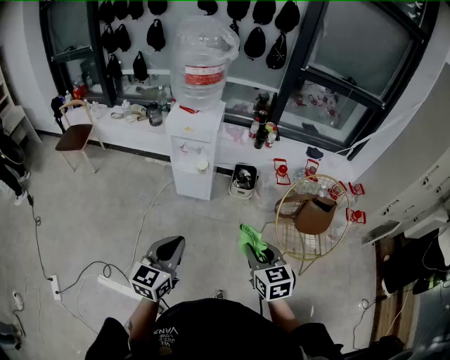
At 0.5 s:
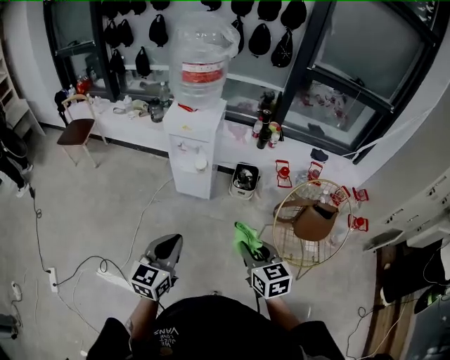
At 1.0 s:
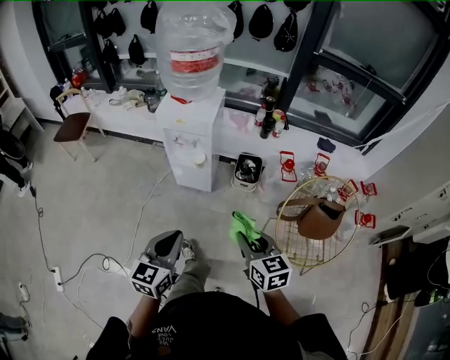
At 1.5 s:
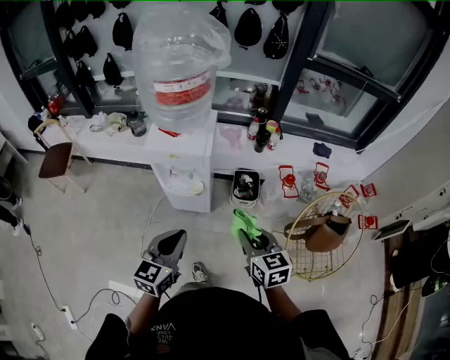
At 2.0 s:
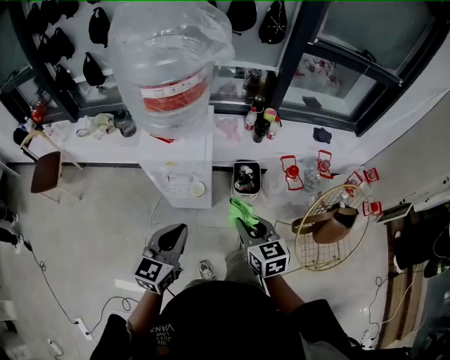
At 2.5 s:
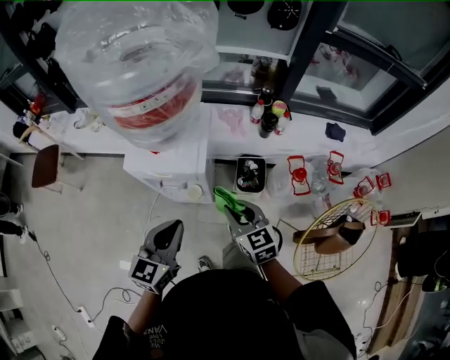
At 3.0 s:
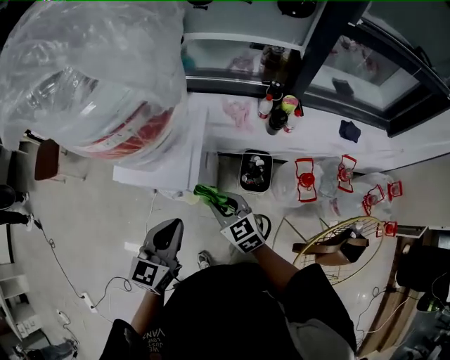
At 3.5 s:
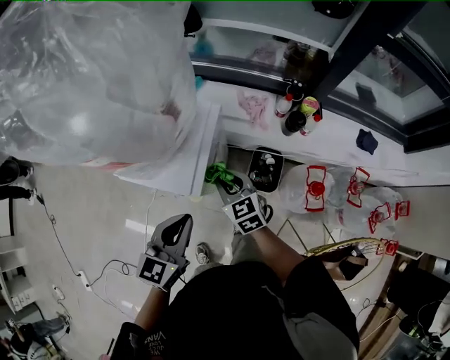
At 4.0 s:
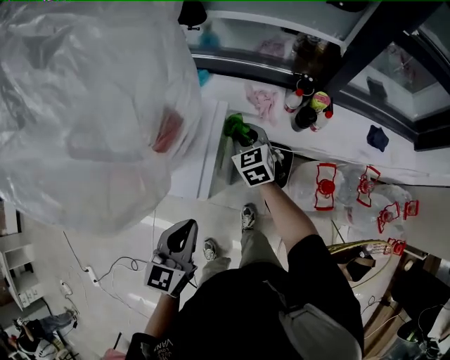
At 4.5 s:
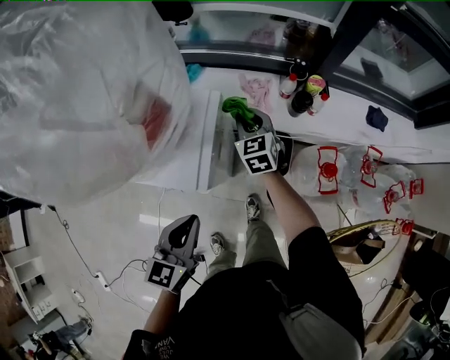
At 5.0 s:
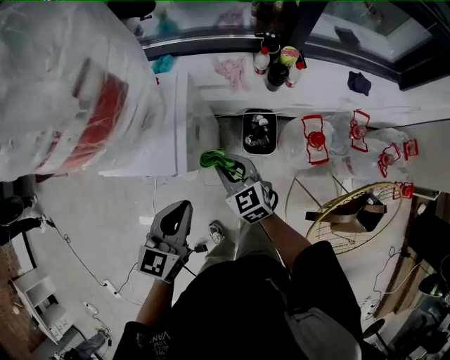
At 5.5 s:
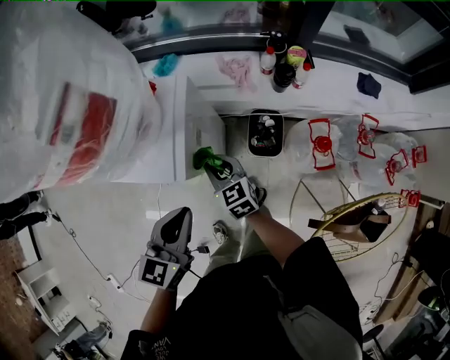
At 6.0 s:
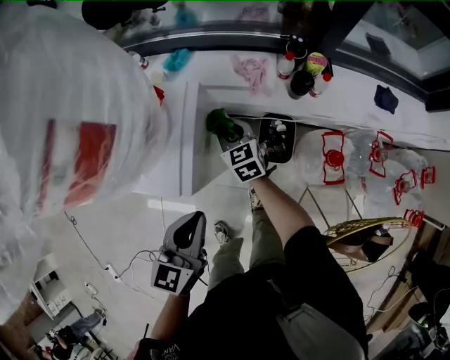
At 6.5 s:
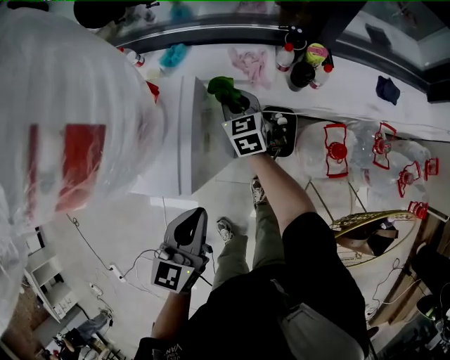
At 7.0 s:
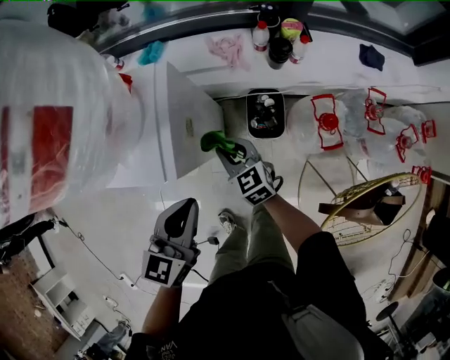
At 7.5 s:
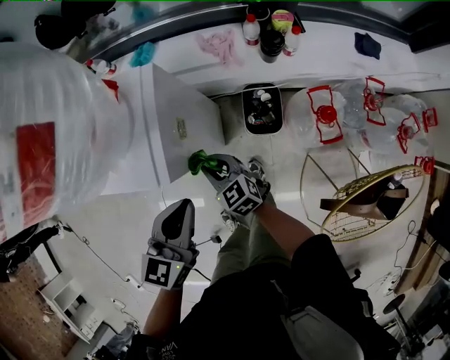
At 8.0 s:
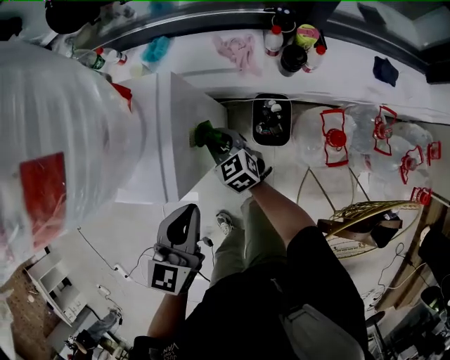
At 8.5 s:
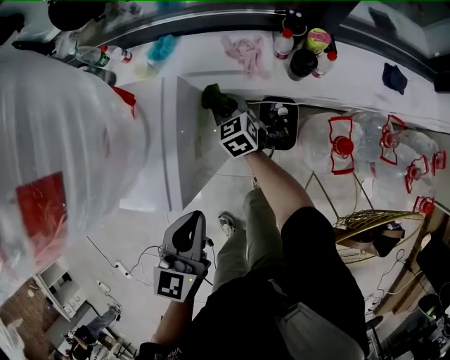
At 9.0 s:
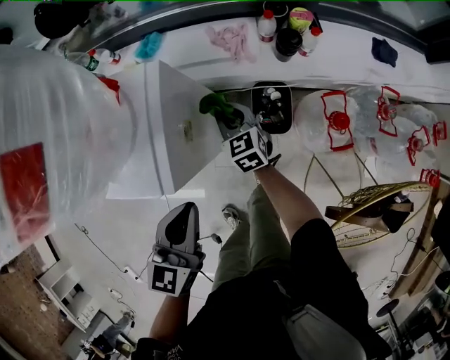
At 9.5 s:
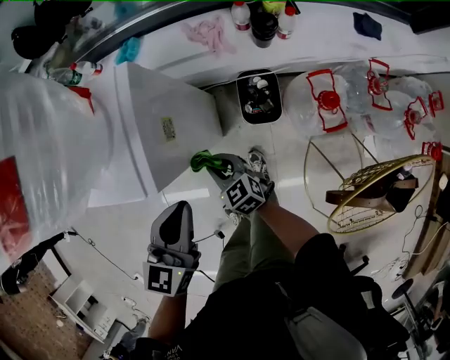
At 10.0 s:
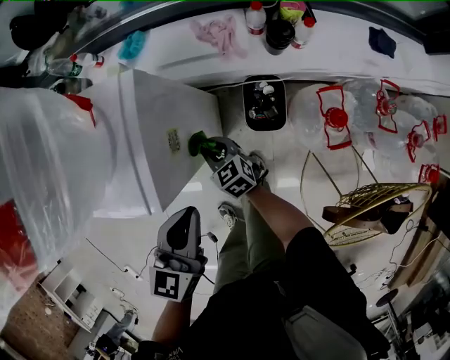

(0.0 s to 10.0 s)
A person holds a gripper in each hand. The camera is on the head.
0.0 s - 2.0 s: Both grippers move forward, some 35 cm.
2.0 s - 4.0 s: The left gripper shifts roughly 20 cm forward and to the right; the right gripper is displaced forward by some 40 cm, and turns by approximately 20 degrees.
4.0 s - 6.0 s: The right gripper moves downward, some 5 cm, and goes backward and returns, about 20 cm each way. The left gripper is displaced to the right by roughly 5 cm.
6.0 s - 8.0 s: The right gripper moves forward and backward over approximately 25 cm, changing direction 2 times.
8.0 s - 10.0 s: The right gripper swings forward and backward, approximately 25 cm each way, with 2 reversals.

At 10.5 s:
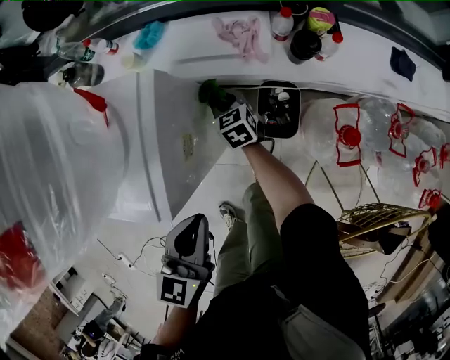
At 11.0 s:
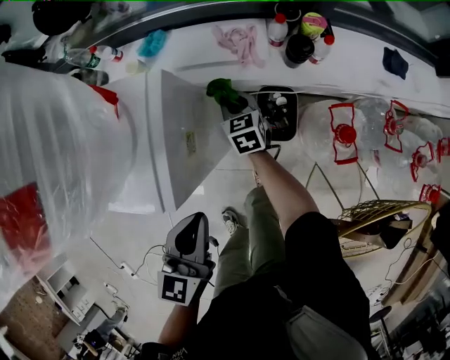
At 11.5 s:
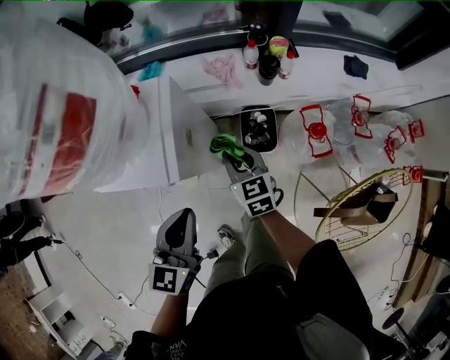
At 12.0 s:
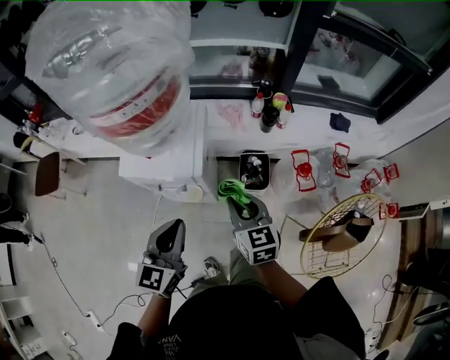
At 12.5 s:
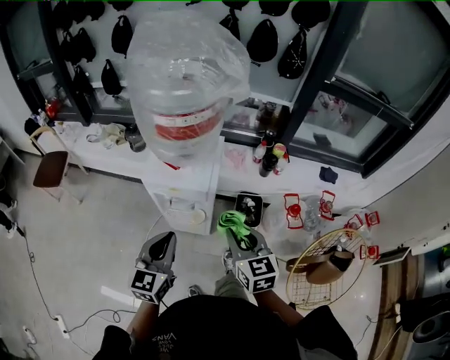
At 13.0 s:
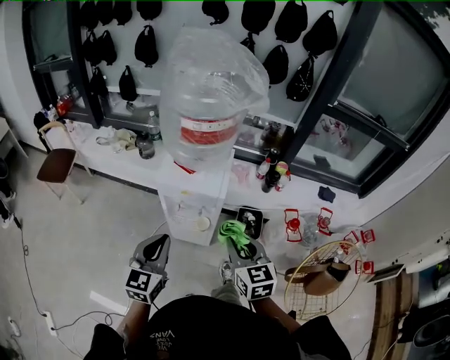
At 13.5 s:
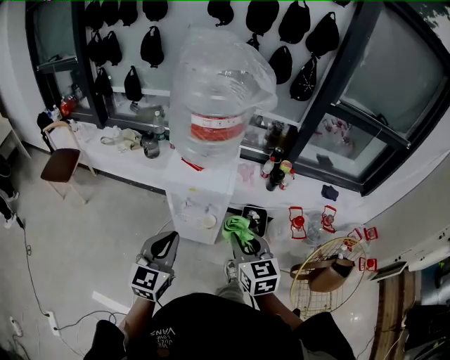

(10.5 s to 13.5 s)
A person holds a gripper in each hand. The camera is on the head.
10.5 s - 12.0 s: The left gripper goes roughly 20 cm backward, upward and to the left, while the right gripper goes roughly 40 cm upward and backward, and turns by some 20 degrees.
12.0 s - 13.5 s: The right gripper is displaced backward, to the left and upward by approximately 20 cm, while the left gripper moves to the left, backward and upward, some 20 cm.

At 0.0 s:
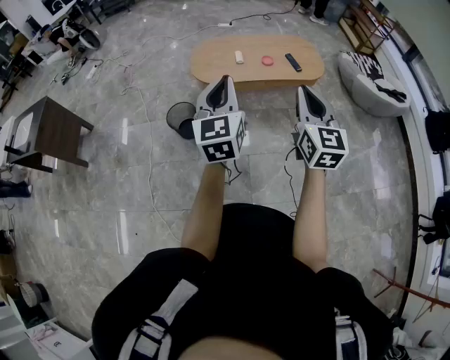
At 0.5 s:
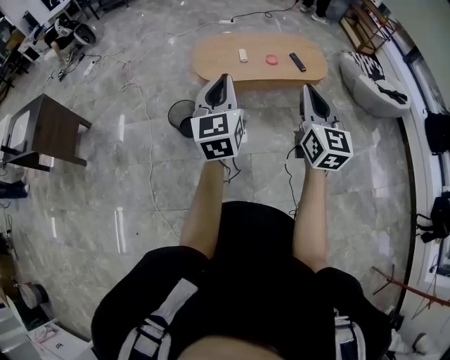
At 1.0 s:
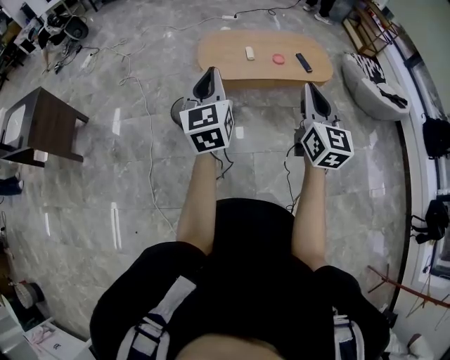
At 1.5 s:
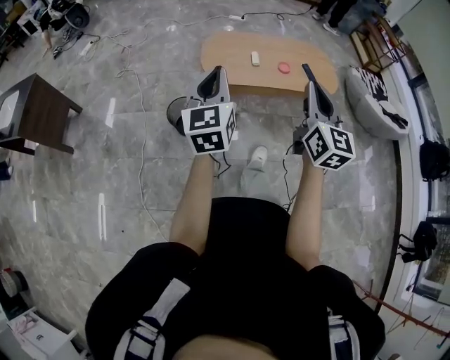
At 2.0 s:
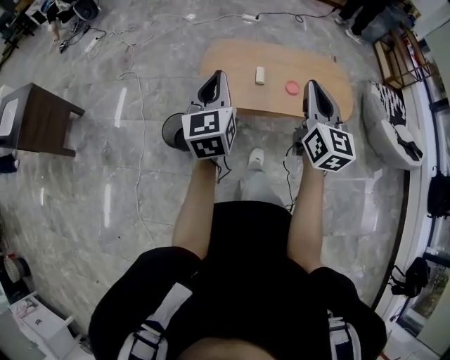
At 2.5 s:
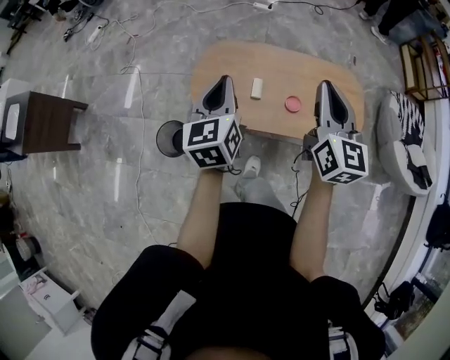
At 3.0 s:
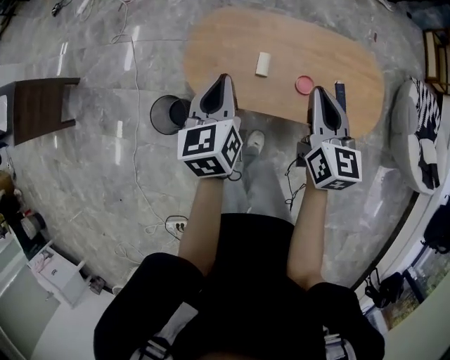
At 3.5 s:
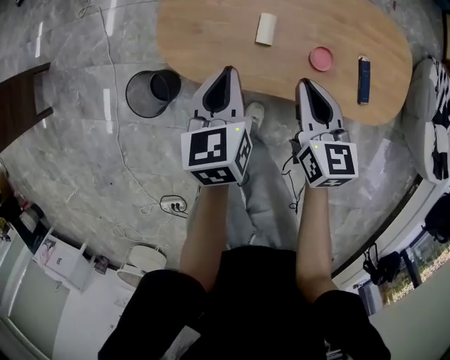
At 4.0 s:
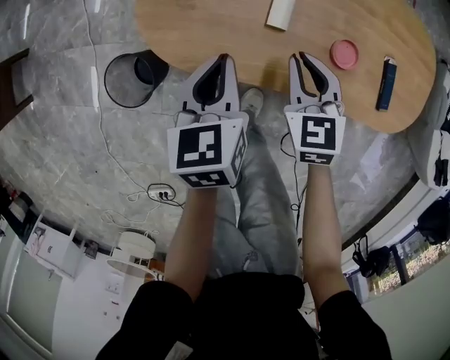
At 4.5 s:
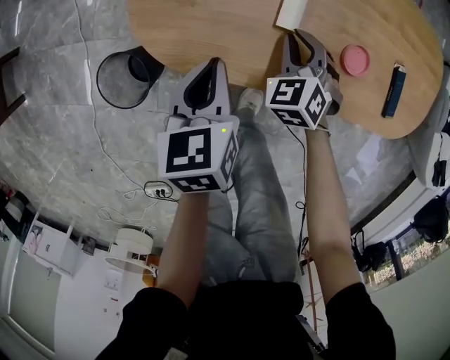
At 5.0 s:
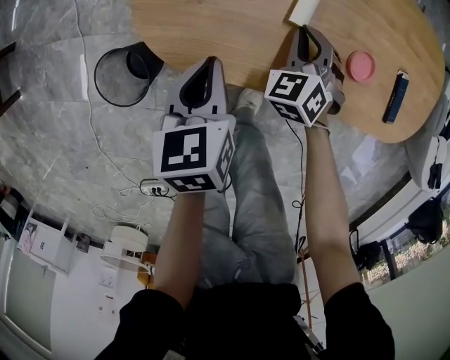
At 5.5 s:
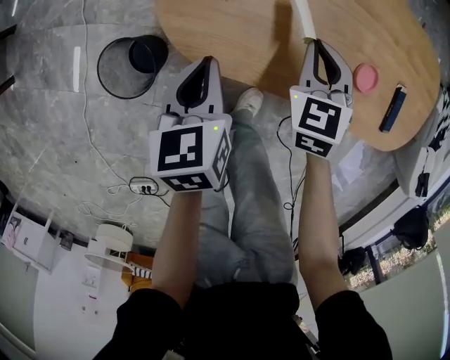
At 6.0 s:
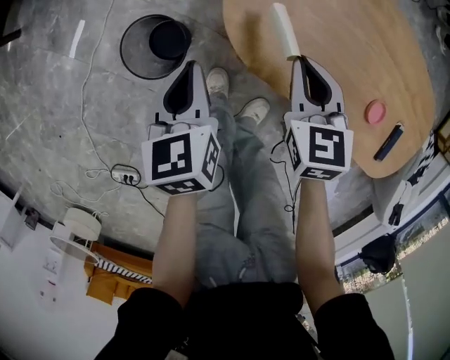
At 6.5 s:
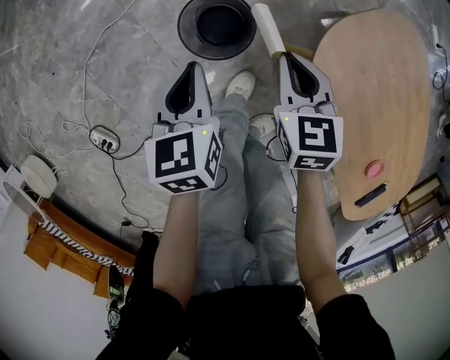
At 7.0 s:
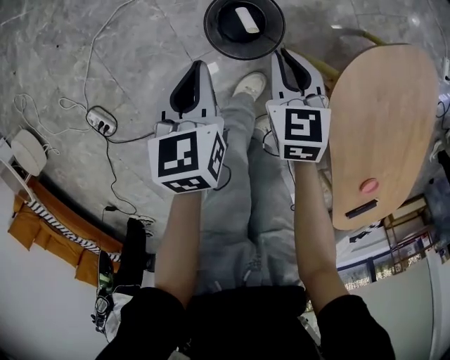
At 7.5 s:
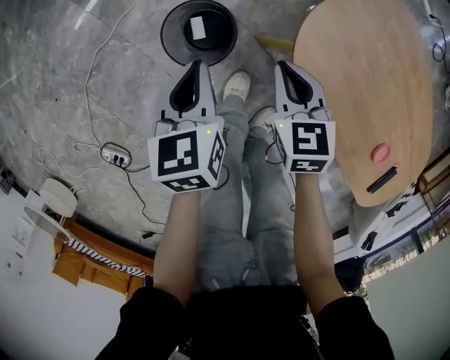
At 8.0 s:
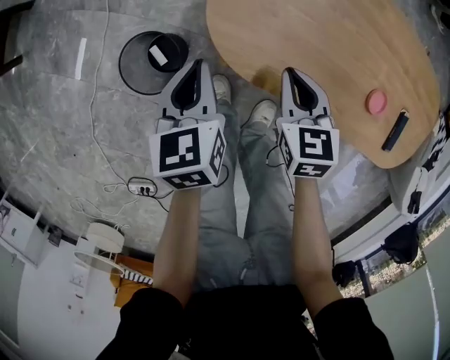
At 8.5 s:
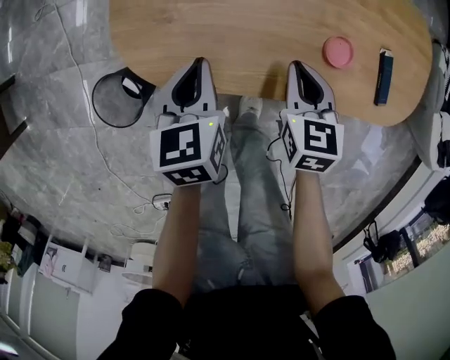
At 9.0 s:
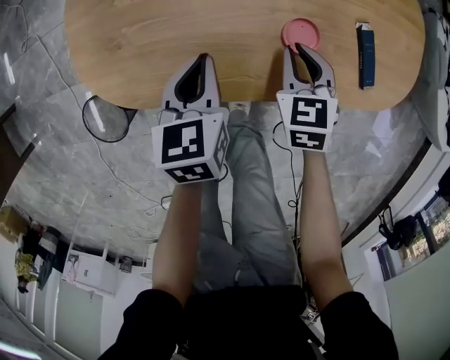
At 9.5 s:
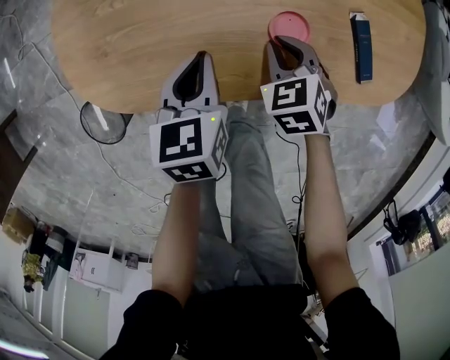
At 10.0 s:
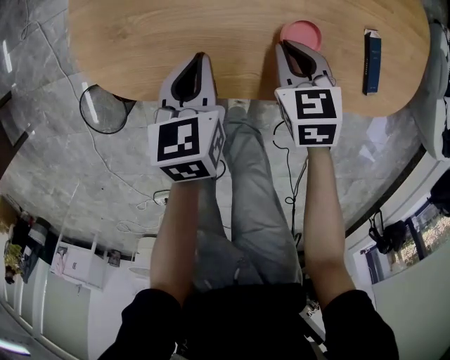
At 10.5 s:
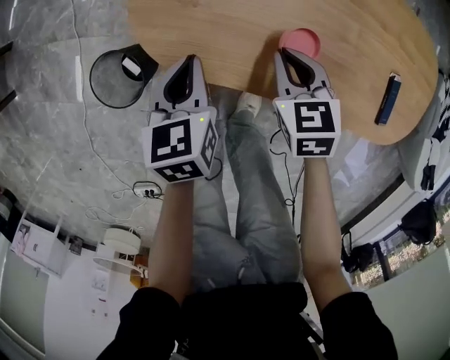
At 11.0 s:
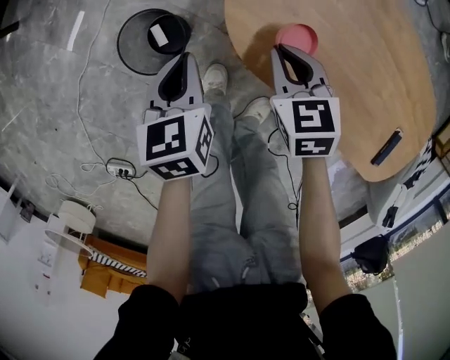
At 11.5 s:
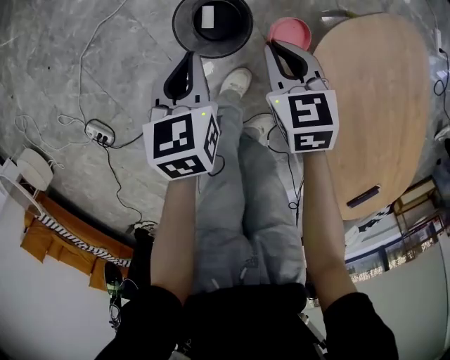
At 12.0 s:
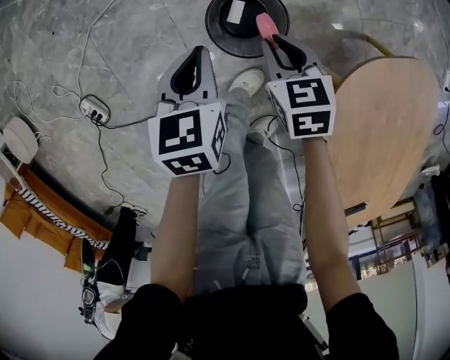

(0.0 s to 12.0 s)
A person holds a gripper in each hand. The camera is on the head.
0.0 s - 2.0 s: The two grippers go about 35 cm forward.
2.0 s - 4.0 s: Both grippers move downward and forward, approximately 50 cm. The right gripper angles its fingers downward, by some 40 degrees. Meanwhile the left gripper points its fingers about 30 degrees further downward.
4.0 s - 6.0 s: The right gripper moves roughly 10 cm downward and comes back. Meanwhile the left gripper changes place by some 25 cm, and turns by approximately 20 degrees.
8.0 s - 10.0 s: The right gripper changes place by approximately 30 cm. The left gripper changes place by some 30 cm, and changes its angle by approximately 20 degrees.
10.0 s - 12.0 s: The two grippers travel together, some 60 cm. The right gripper changes its angle by about 70 degrees. The left gripper rotates about 70 degrees.

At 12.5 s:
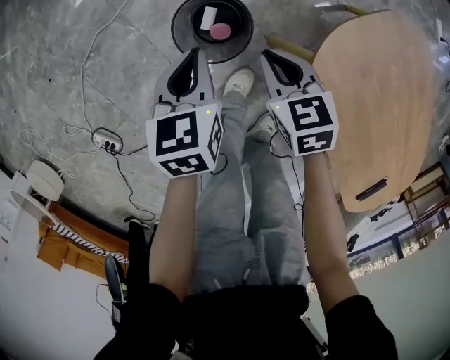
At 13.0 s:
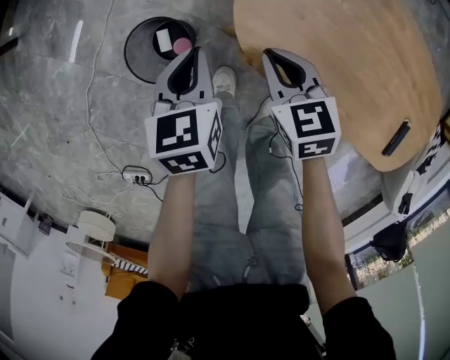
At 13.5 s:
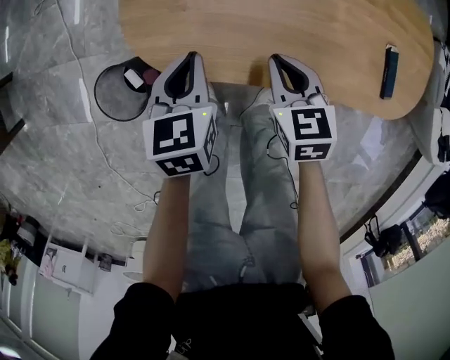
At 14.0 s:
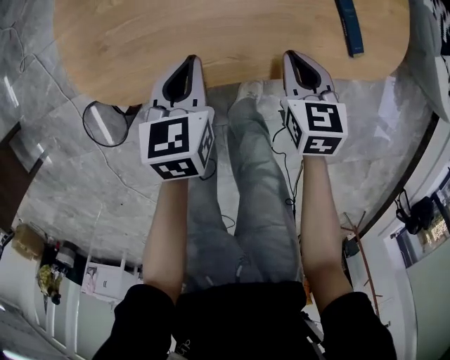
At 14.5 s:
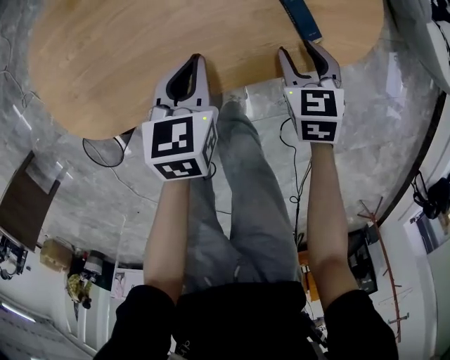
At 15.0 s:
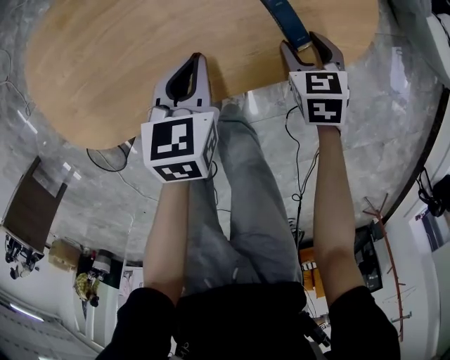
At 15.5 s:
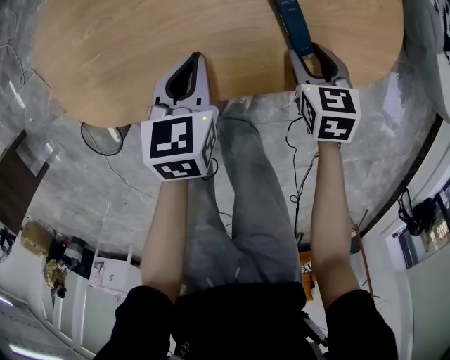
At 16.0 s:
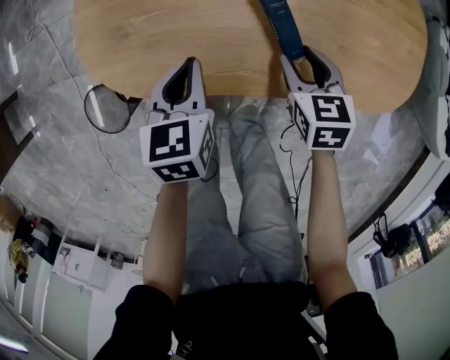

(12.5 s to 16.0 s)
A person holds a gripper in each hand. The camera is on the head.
12.5 s - 14.5 s: Both grippers are carried about 70 cm. The left gripper turns by about 80 degrees. Meanwhile the right gripper turns by about 80 degrees, and opens up.
14.5 s - 16.0 s: The left gripper ends up roughly 20 cm from where it was, and swivels some 20 degrees; the right gripper ends up about 20 cm from where it was.
